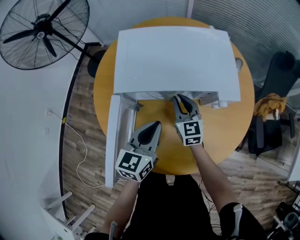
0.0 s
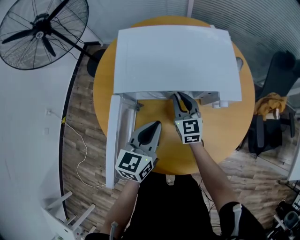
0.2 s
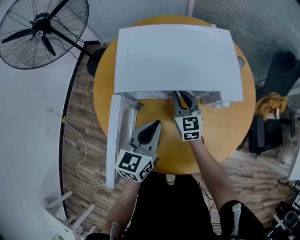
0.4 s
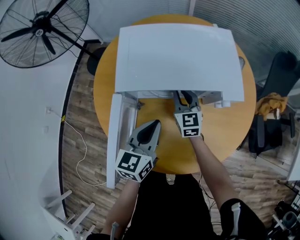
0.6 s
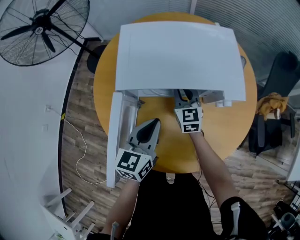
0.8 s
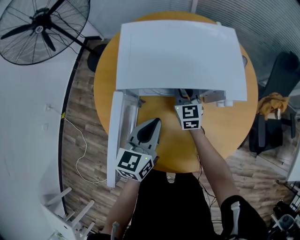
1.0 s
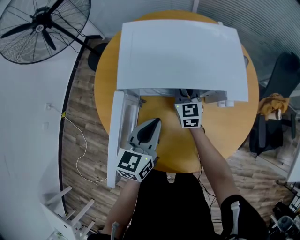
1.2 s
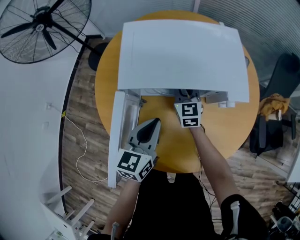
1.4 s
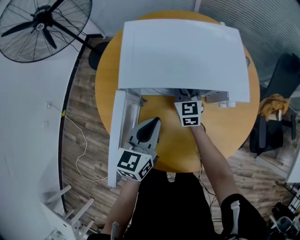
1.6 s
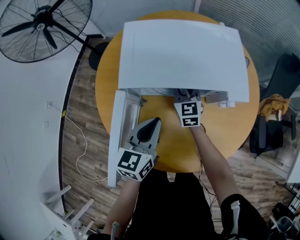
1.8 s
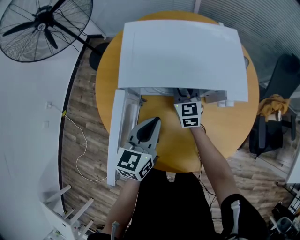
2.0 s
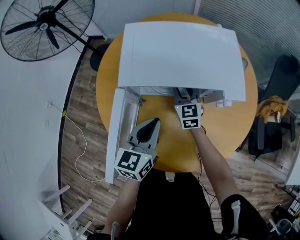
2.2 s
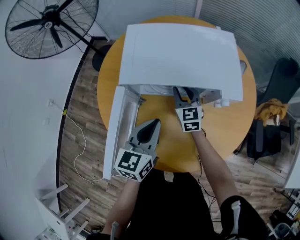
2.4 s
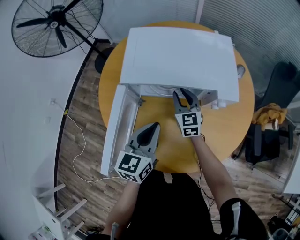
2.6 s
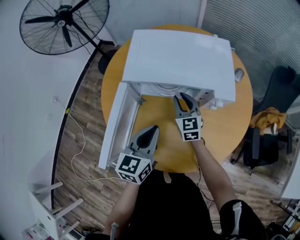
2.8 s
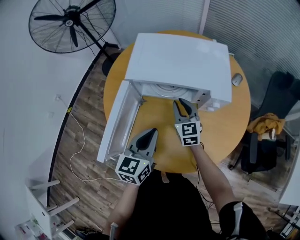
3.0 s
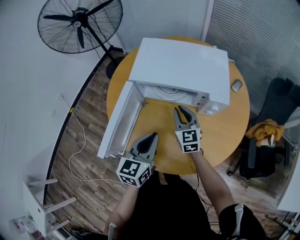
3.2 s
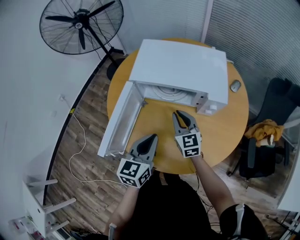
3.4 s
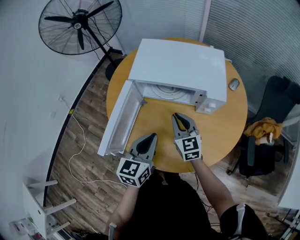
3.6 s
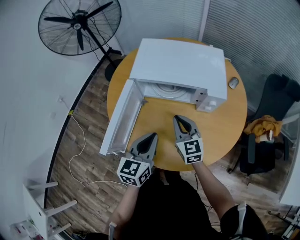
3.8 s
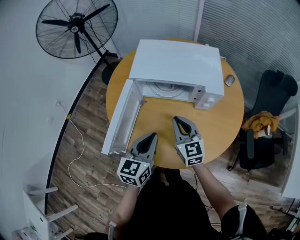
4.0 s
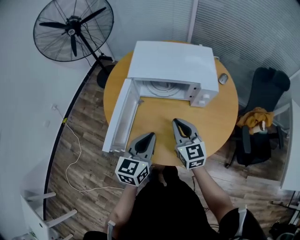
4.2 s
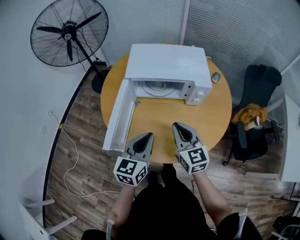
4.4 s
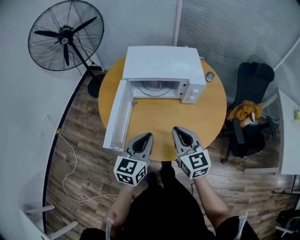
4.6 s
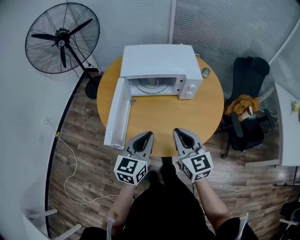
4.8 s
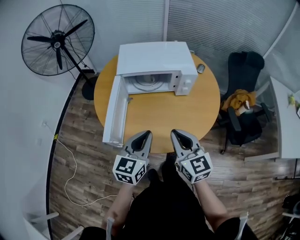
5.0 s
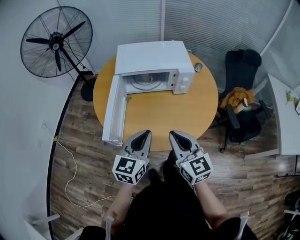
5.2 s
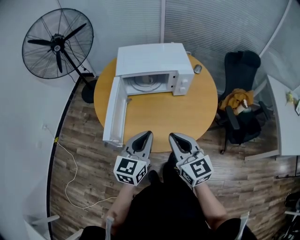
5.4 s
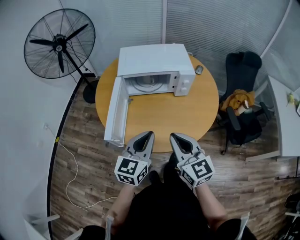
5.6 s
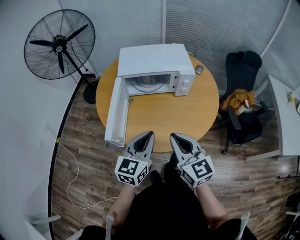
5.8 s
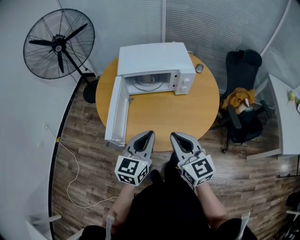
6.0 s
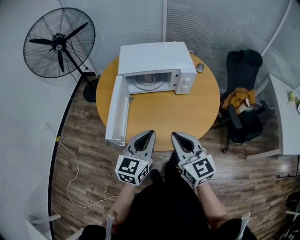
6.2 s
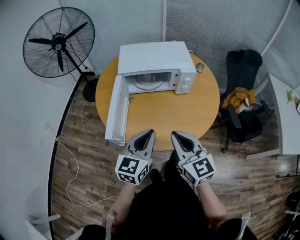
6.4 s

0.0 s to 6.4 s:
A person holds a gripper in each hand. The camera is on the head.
0.0 to 1.6 s: The right gripper moves forward, about 5 cm.
1.6 to 3.2 s: The left gripper shifts approximately 10 cm backward; the right gripper travels backward and upward by approximately 15 cm.
3.2 to 4.8 s: The right gripper moves backward and upward, roughly 30 cm; the left gripper goes approximately 15 cm backward and upward.
4.8 to 6.4 s: The right gripper goes roughly 5 cm backward.

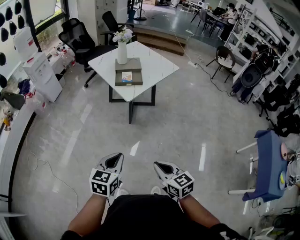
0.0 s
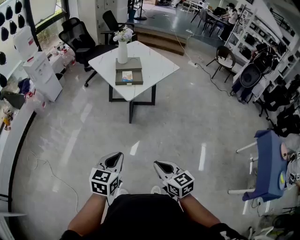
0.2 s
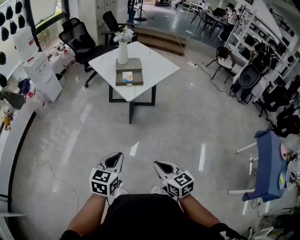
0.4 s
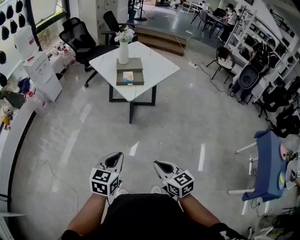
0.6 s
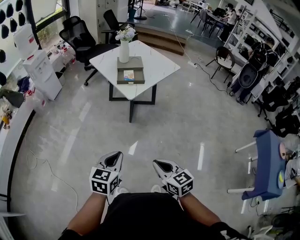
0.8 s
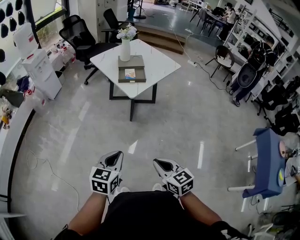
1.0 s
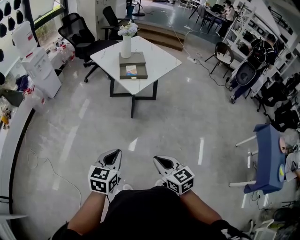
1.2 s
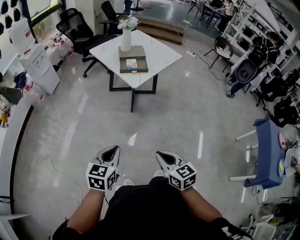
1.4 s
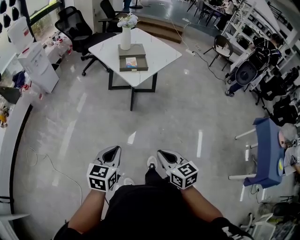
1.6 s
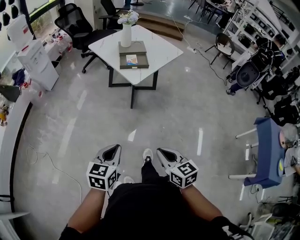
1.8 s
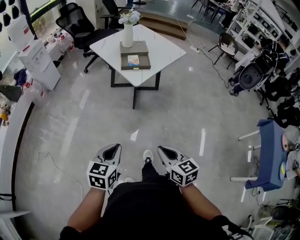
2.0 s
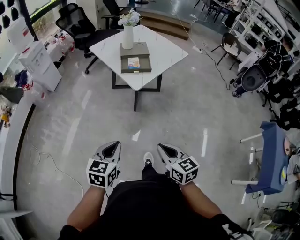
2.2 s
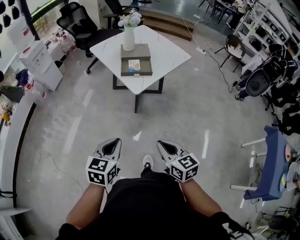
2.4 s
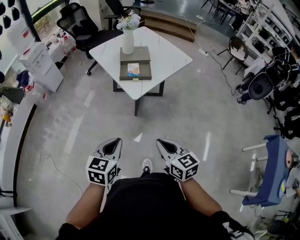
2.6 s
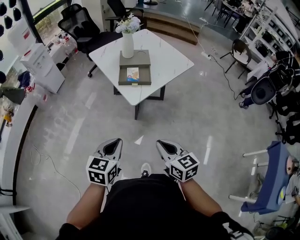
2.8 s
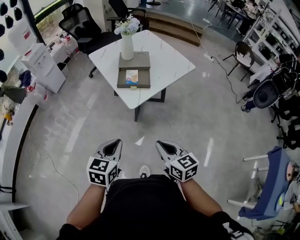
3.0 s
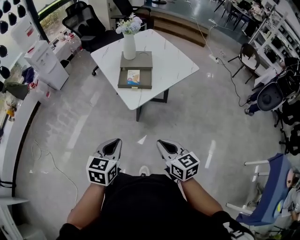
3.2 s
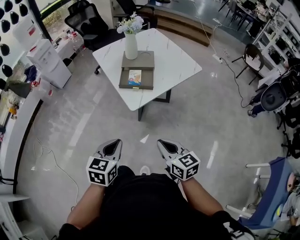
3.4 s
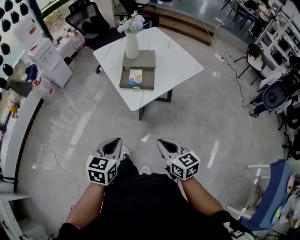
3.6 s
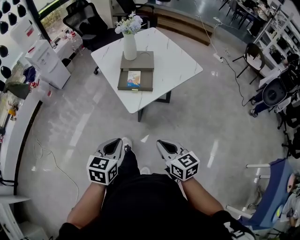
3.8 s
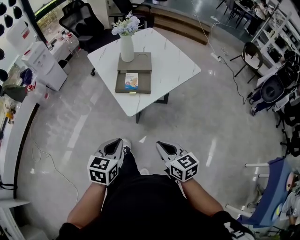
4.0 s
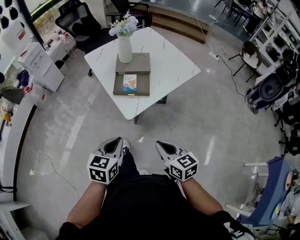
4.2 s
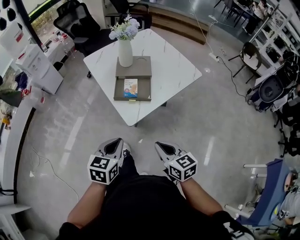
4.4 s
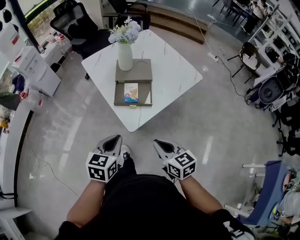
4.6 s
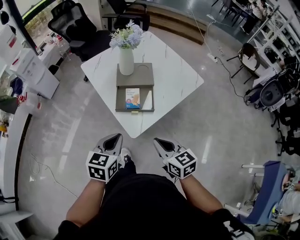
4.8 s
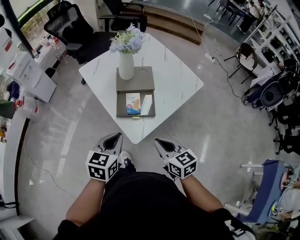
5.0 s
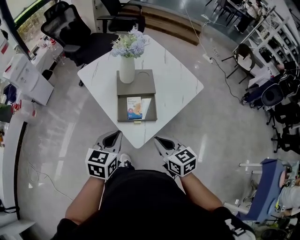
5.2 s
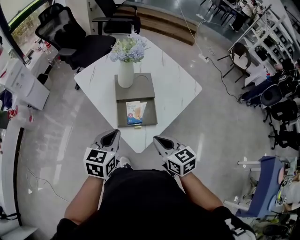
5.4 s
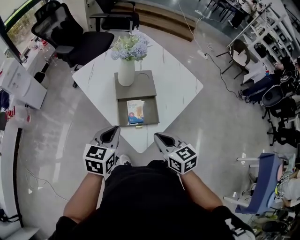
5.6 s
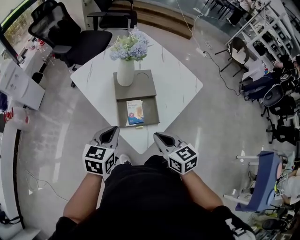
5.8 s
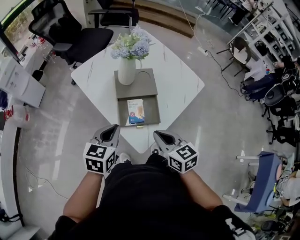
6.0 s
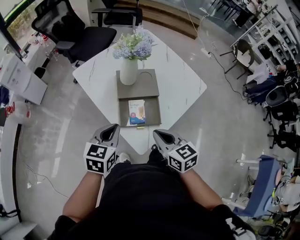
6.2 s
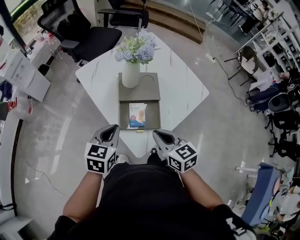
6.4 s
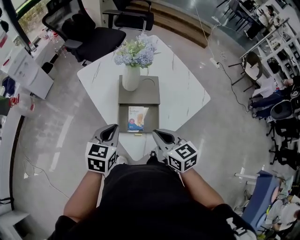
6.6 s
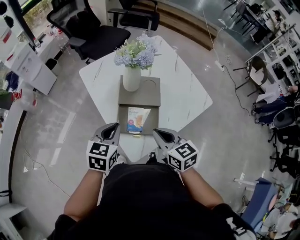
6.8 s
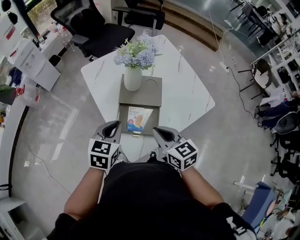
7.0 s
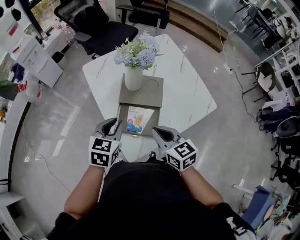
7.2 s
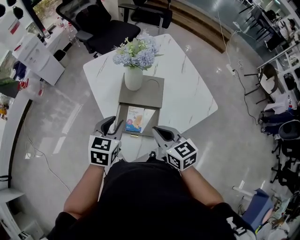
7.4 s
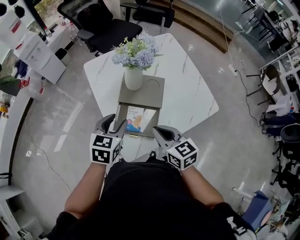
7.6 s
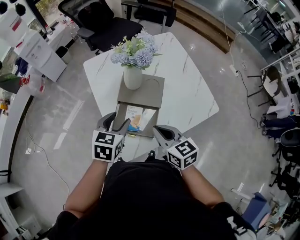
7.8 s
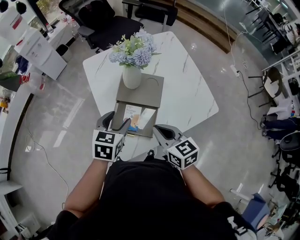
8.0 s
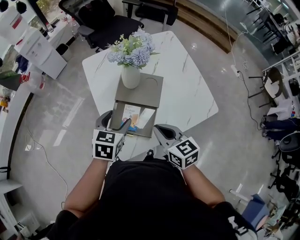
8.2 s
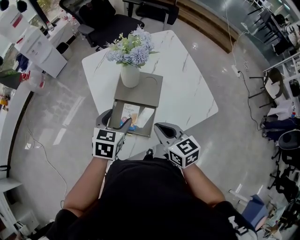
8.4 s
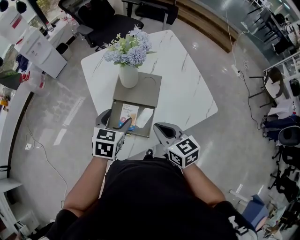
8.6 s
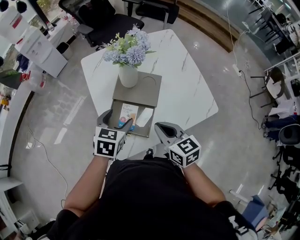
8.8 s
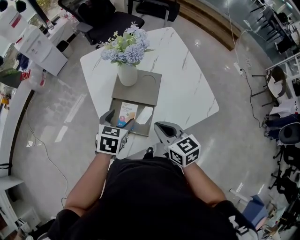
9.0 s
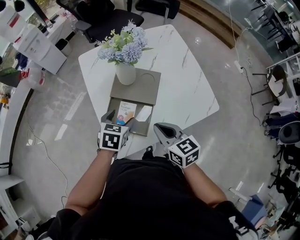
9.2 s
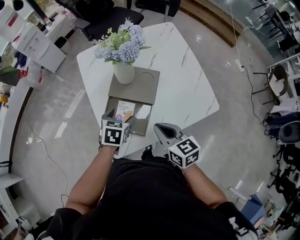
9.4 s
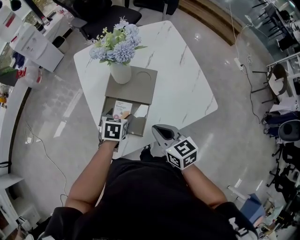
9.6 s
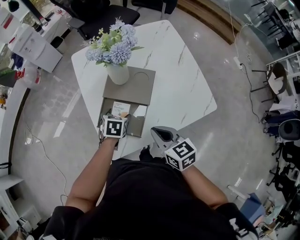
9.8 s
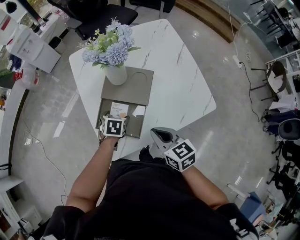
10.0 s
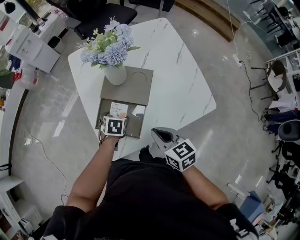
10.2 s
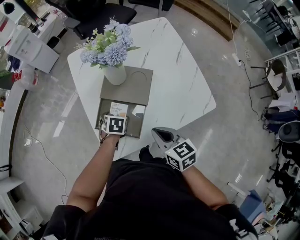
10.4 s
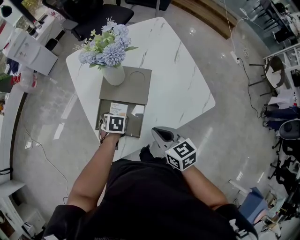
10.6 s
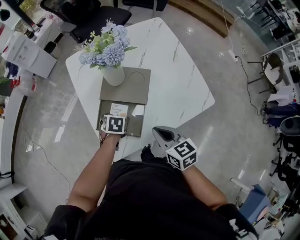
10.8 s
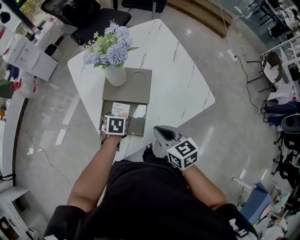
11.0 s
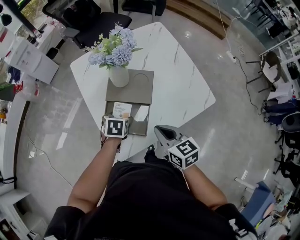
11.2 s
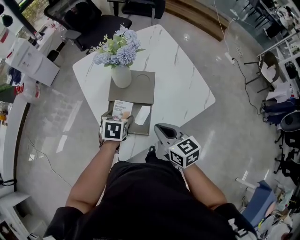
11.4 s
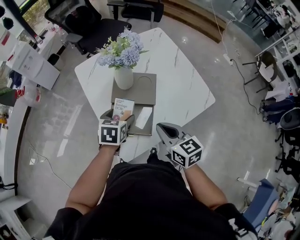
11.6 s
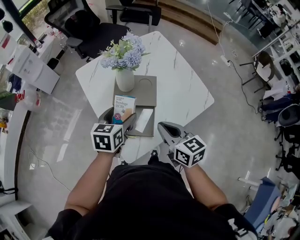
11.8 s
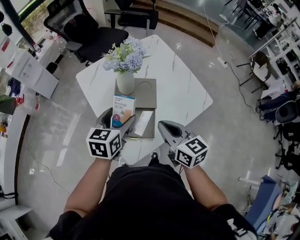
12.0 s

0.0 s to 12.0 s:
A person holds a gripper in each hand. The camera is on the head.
0.0 to 1.6 s: The grippers both shift to the left by approximately 10 cm.
1.6 to 3.0 s: The left gripper goes roughly 25 cm forward and to the right, while the right gripper heads forward, covering roughly 25 cm.
3.0 to 4.4 s: The two grippers go roughly 15 cm forward.
4.4 to 6.0 s: Both grippers move forward, roughly 25 cm.
6.0 to 7.6 s: The left gripper is displaced to the right and forward by roughly 10 cm, and opens its fingers, while the right gripper heads forward and to the right, covering some 10 cm.
7.6 to 9.0 s: The right gripper is displaced to the right by approximately 5 cm; the left gripper travels to the right and downward by approximately 10 cm, and opens.
9.0 to 10.4 s: The right gripper moves roughly 5 cm. The left gripper goes about 15 cm downward, and swivels about 20 degrees.
10.4 to 12.0 s: The left gripper moves upward, approximately 25 cm, and tilts its fingers about 40 degrees upward. The right gripper goes roughly 15 cm upward and to the left, and changes its angle by about 20 degrees.

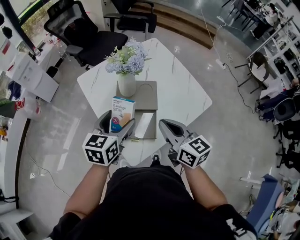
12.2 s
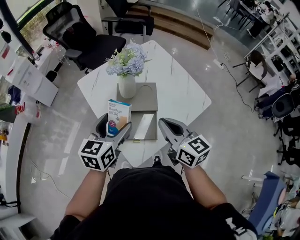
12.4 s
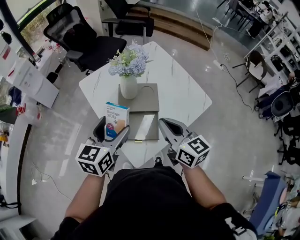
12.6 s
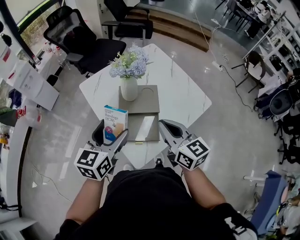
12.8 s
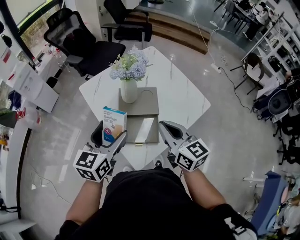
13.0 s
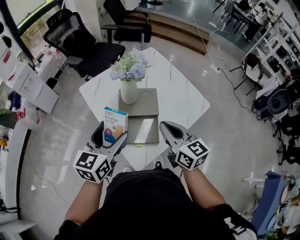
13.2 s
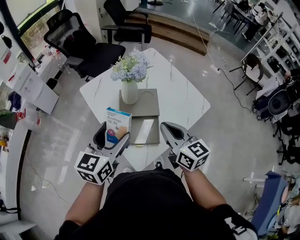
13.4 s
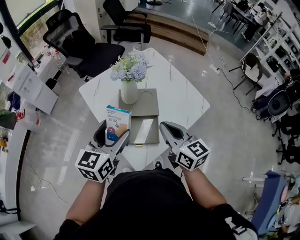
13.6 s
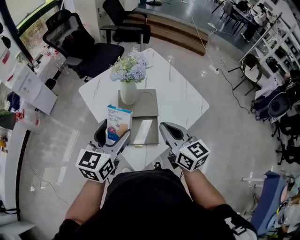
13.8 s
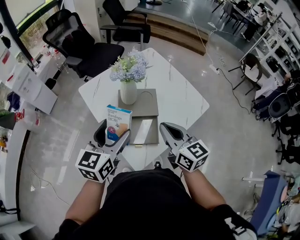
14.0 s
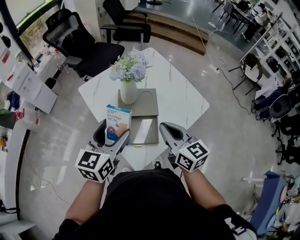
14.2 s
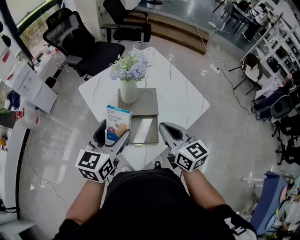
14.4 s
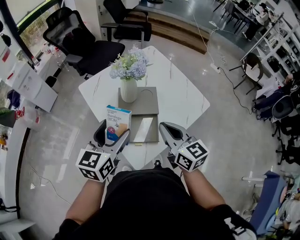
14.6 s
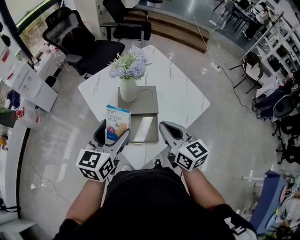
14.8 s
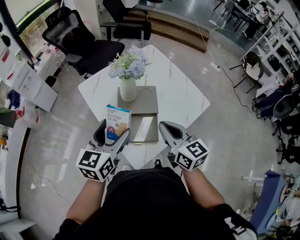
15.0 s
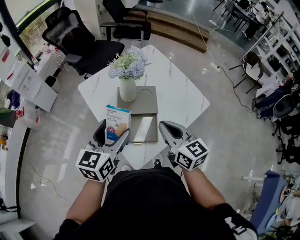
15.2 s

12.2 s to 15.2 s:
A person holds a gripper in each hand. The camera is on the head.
12.2 to 13.8 s: The left gripper shifts some 5 cm upward.
13.8 to 15.2 s: The grippers stay close to where they were, moving slightly.

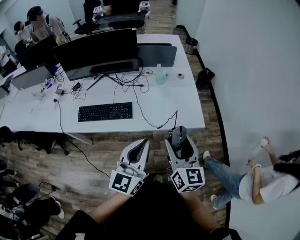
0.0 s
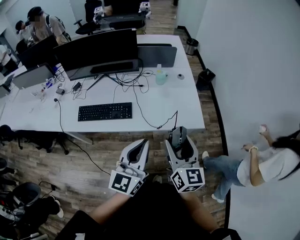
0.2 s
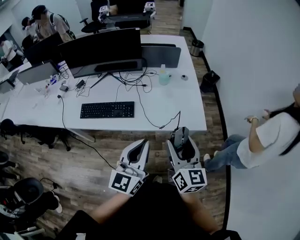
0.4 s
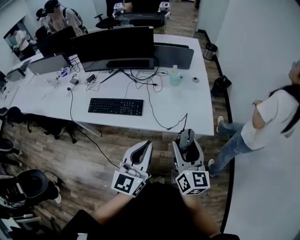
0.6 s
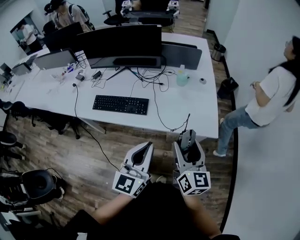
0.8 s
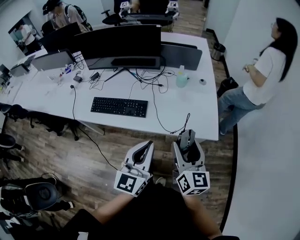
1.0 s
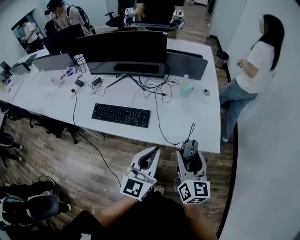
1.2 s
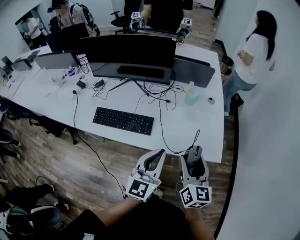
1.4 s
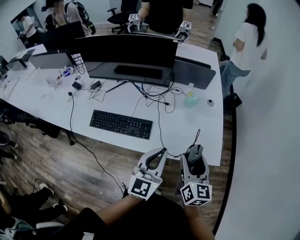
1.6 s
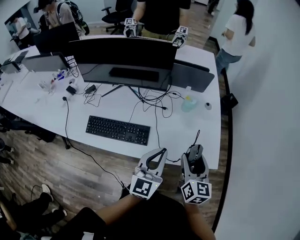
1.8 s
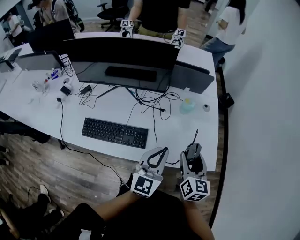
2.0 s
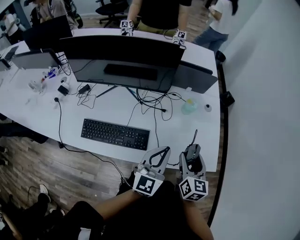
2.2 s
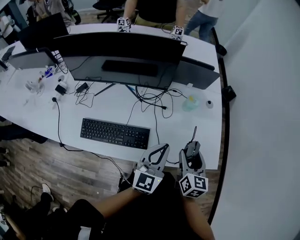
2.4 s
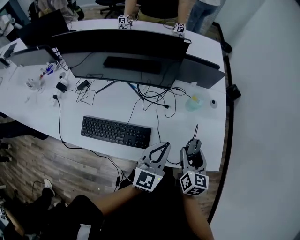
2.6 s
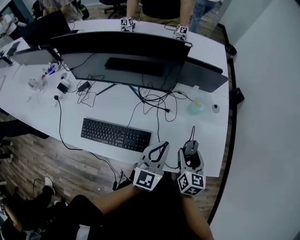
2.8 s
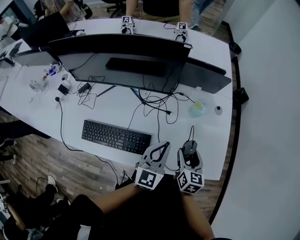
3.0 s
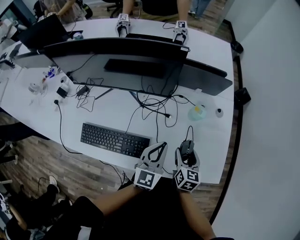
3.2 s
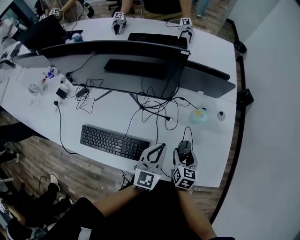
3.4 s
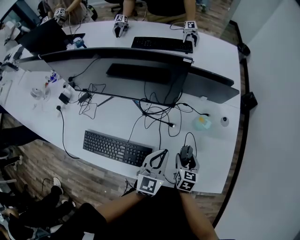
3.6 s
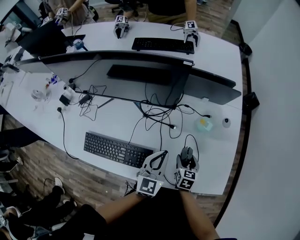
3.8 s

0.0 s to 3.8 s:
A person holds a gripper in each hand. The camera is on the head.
0.0 to 1.2 s: Both grippers move forward, about 5 cm.
1.2 to 2.6 s: The left gripper heads forward, covering approximately 25 cm; the right gripper is displaced forward and downward by about 25 cm, and rotates about 20 degrees.
2.6 to 3.8 s: The right gripper shifts roughly 20 cm downward and forward, and changes its angle by some 20 degrees; the left gripper heads forward and downward, covering approximately 15 cm.
